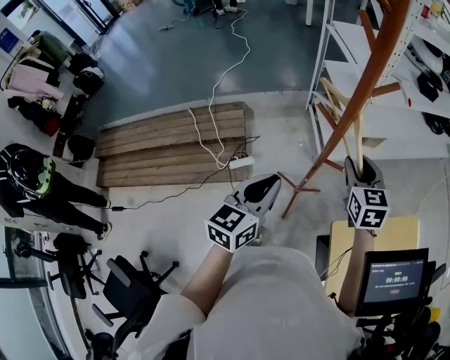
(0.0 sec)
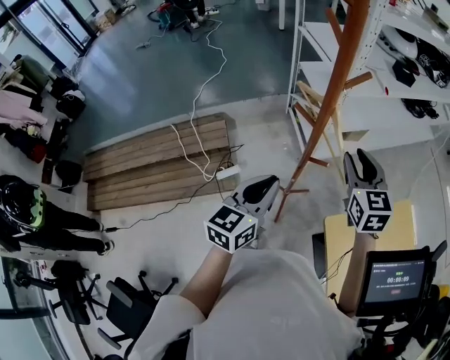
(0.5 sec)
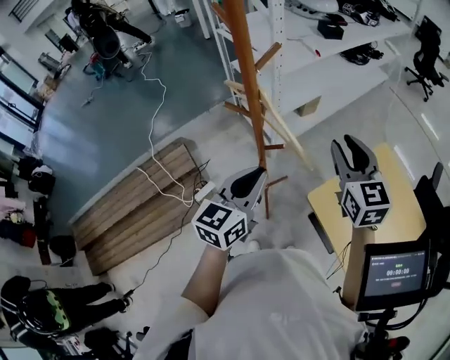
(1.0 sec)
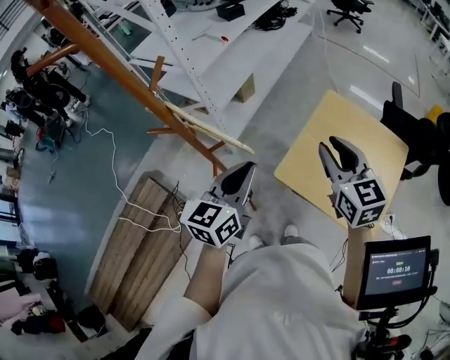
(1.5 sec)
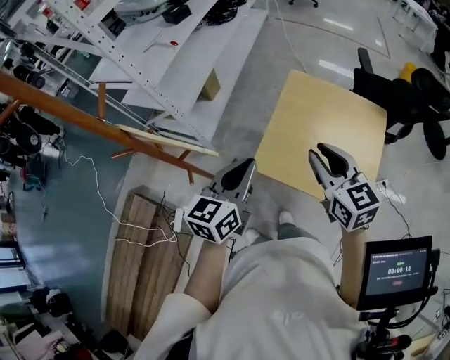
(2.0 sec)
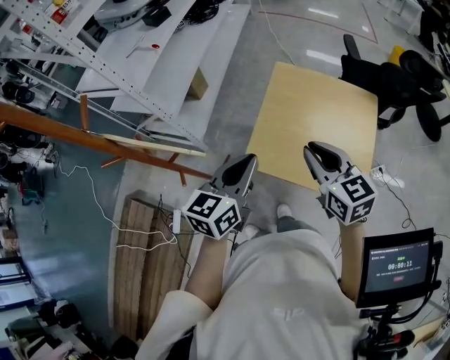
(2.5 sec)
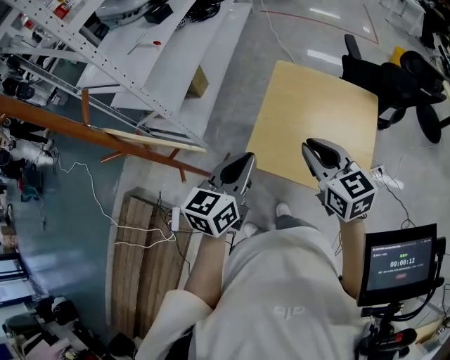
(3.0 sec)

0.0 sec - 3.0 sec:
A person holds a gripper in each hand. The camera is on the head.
0.0 sec - 1.5 sec: The right gripper shifts by approximately 30 cm, and swivels some 40 degrees; the left gripper moves roughly 25 cm, and changes its angle by roughly 40 degrees.
1.5 sec - 3.0 sec: The right gripper moves to the right and downward, about 10 cm, while the left gripper travels to the right by approximately 10 cm.

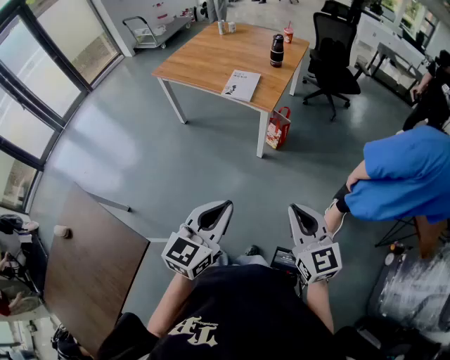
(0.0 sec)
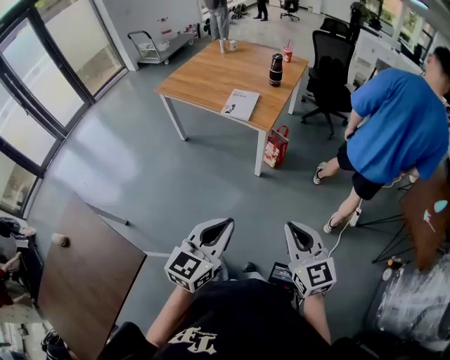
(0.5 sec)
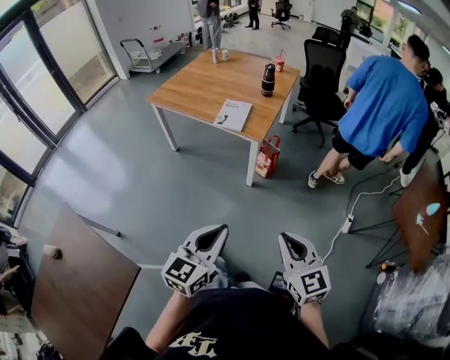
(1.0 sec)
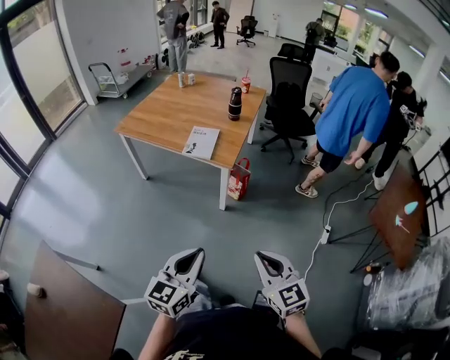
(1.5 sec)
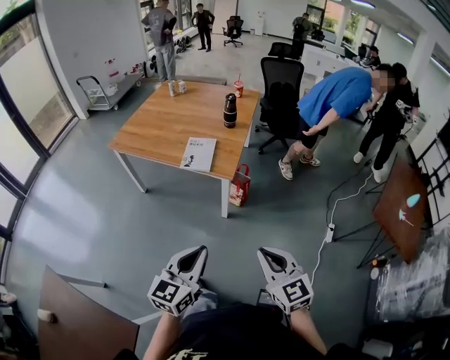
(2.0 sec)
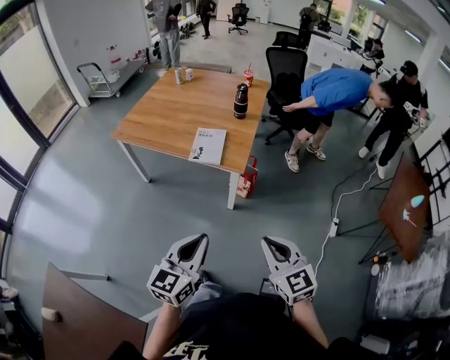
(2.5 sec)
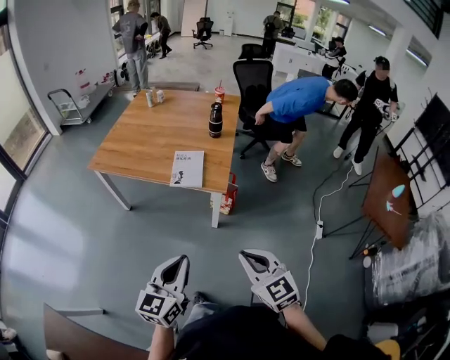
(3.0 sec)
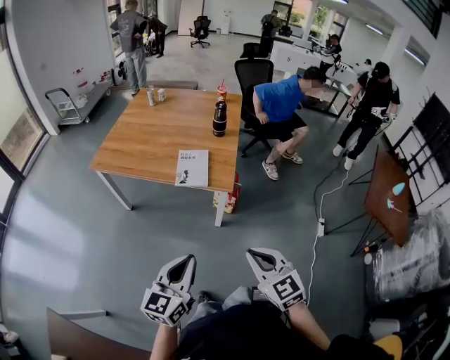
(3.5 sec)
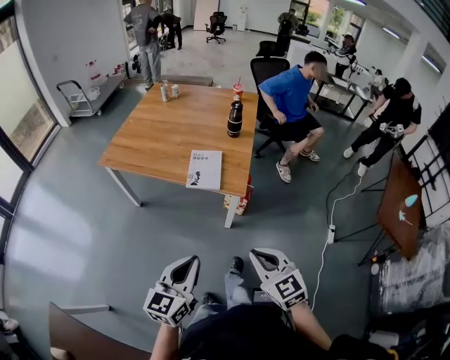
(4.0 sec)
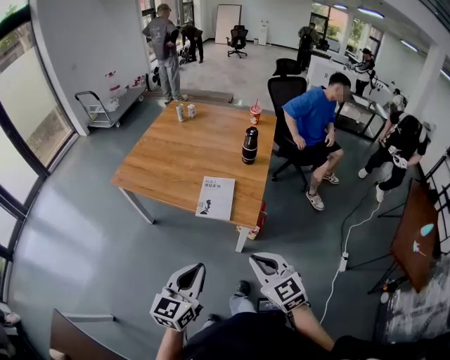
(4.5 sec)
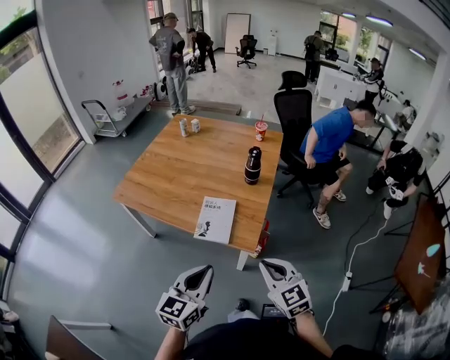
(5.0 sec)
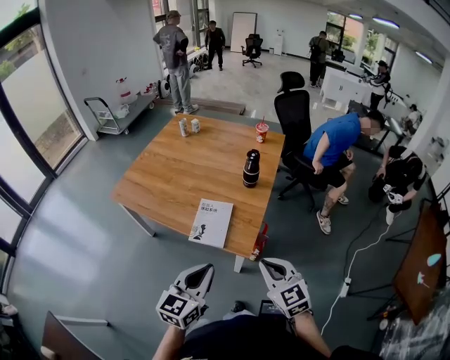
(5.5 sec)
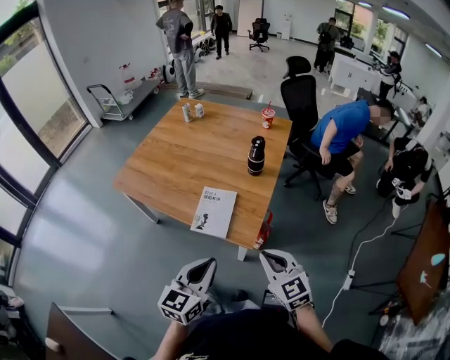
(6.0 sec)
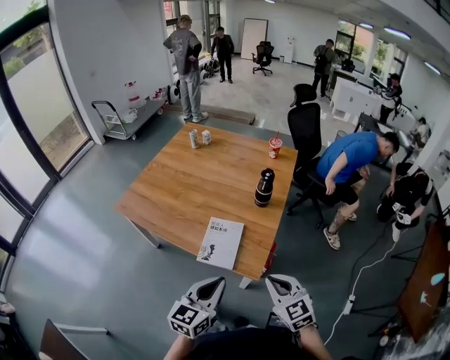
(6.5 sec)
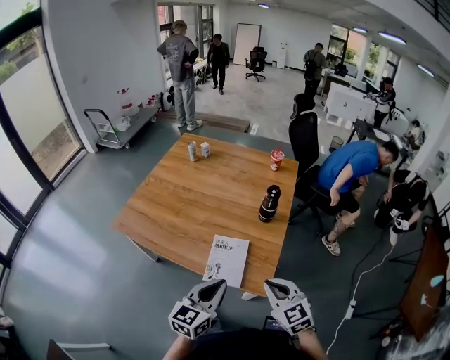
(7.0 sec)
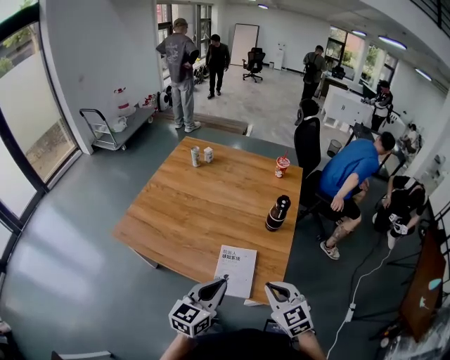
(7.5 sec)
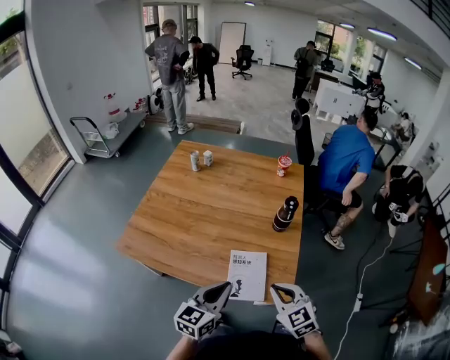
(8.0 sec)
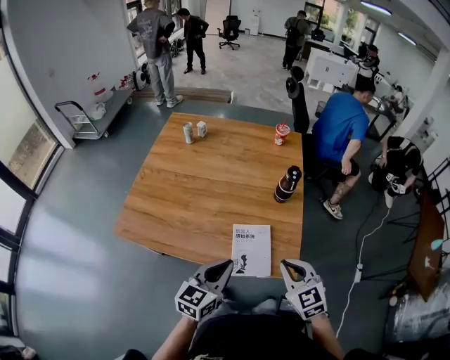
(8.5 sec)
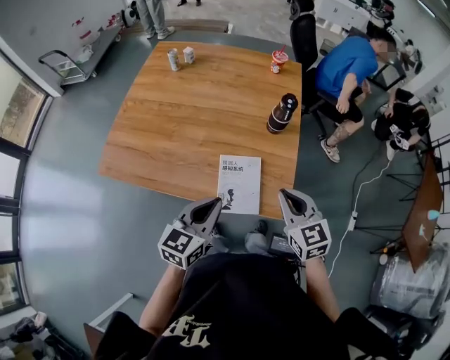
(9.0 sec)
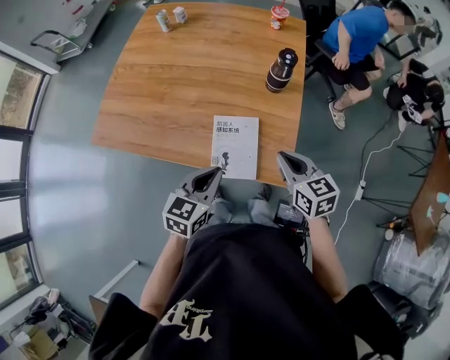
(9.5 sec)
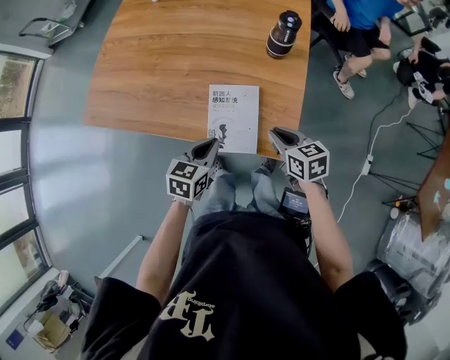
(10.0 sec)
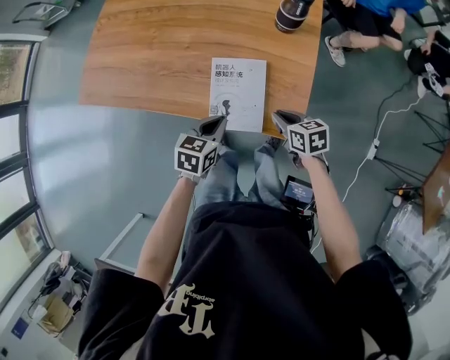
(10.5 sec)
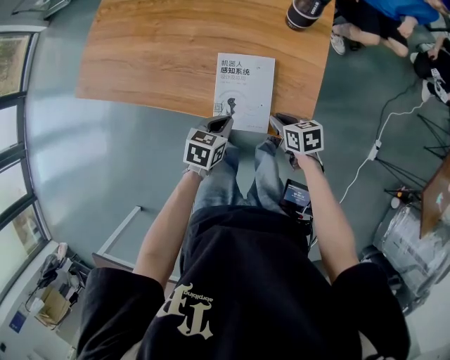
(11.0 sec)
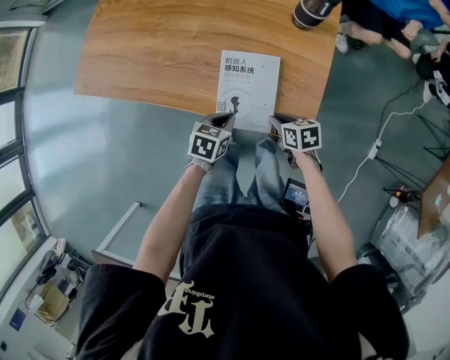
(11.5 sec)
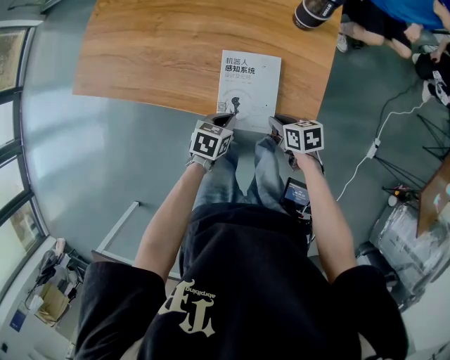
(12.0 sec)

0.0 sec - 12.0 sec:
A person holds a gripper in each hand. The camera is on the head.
0.0 sec - 2.0 sec: The grippers both shift forward by roughly 15 cm.
2.0 sec - 4.0 sec: Both grippers move to the left and forward, about 20 cm.
4.0 sec - 6.0 sec: Both grippers travel together forward and to the right, approximately 30 cm.
6.0 sec - 8.0 sec: The left gripper heads forward and to the left, covering some 30 cm. The right gripper shifts roughly 25 cm to the left and forward.
8.0 sec - 10.0 sec: The left gripper heads downward, covering roughly 20 cm, and turns by roughly 30 degrees, while the right gripper travels downward and to the right by roughly 20 cm, and turns by about 40 degrees.
10.0 sec - 12.0 sec: The two grippers go approximately 15 cm downward. The right gripper turns by some 20 degrees.

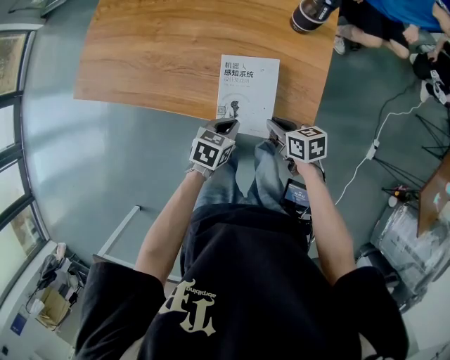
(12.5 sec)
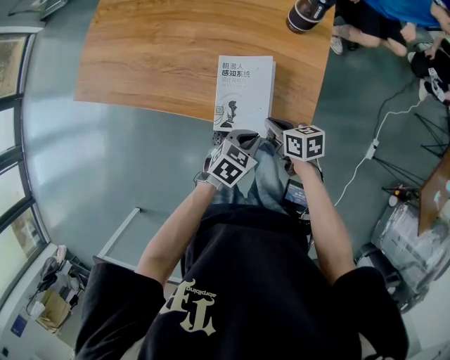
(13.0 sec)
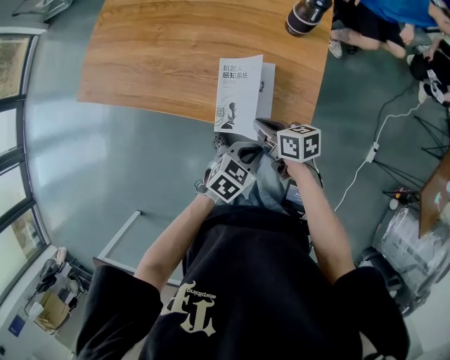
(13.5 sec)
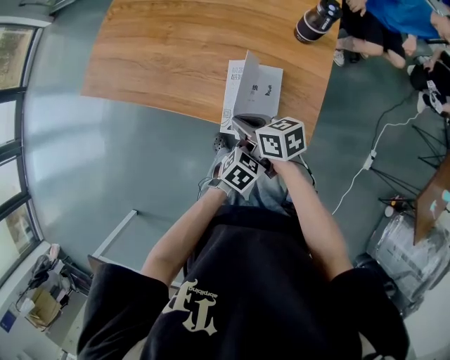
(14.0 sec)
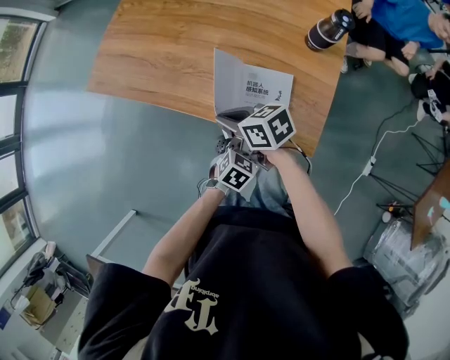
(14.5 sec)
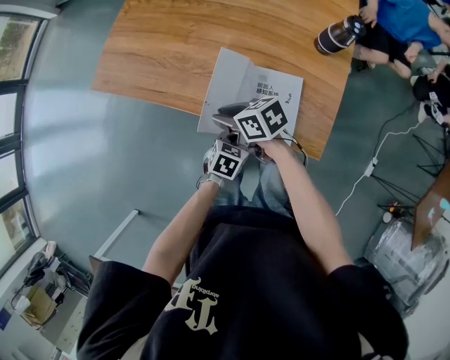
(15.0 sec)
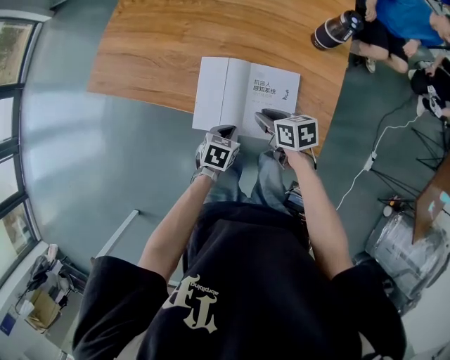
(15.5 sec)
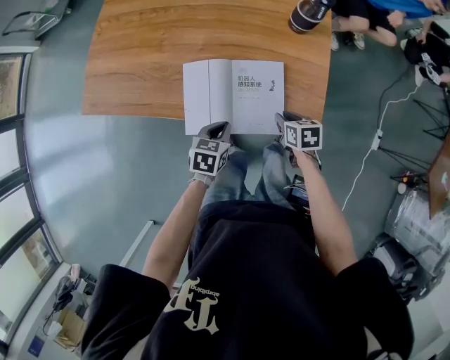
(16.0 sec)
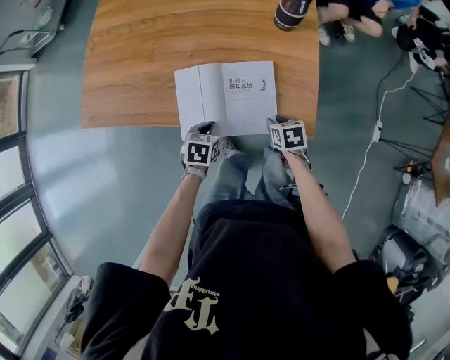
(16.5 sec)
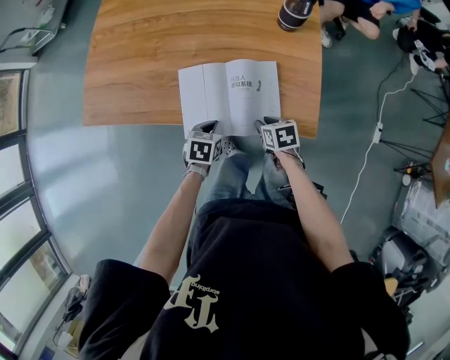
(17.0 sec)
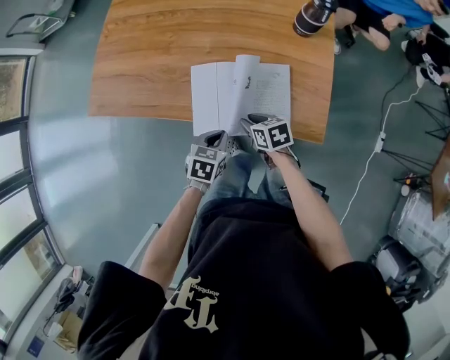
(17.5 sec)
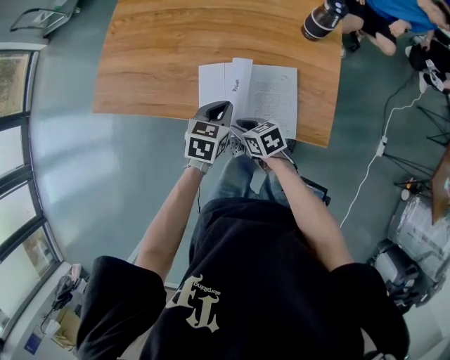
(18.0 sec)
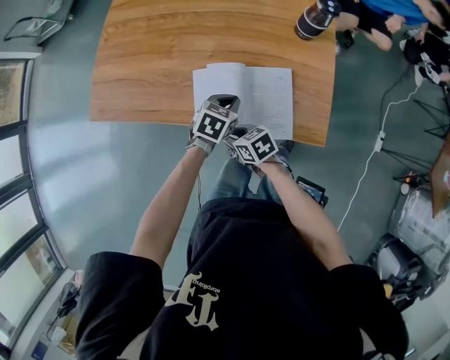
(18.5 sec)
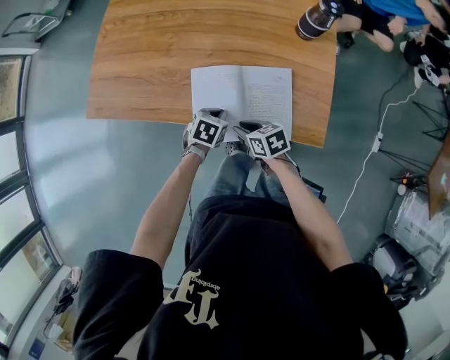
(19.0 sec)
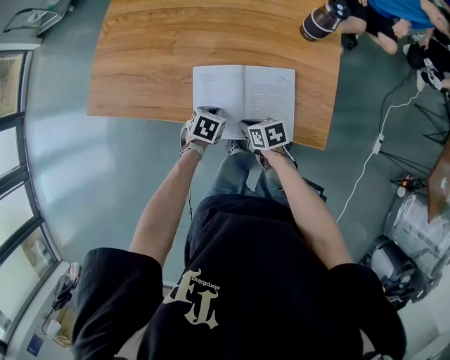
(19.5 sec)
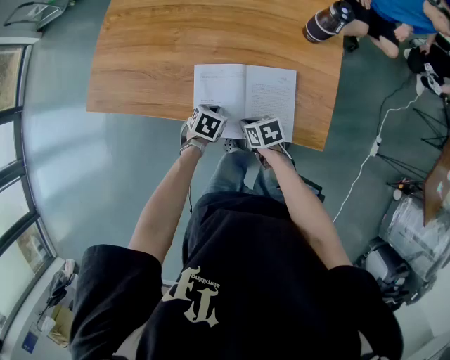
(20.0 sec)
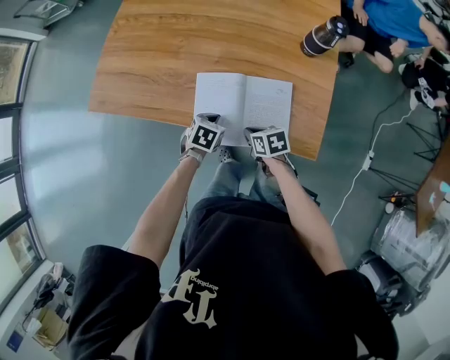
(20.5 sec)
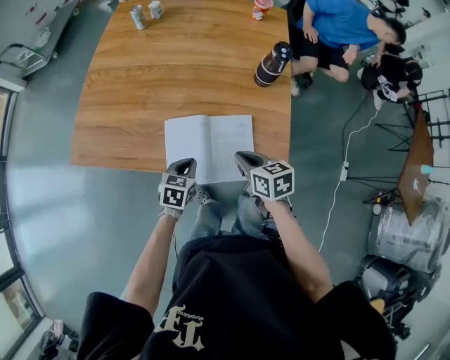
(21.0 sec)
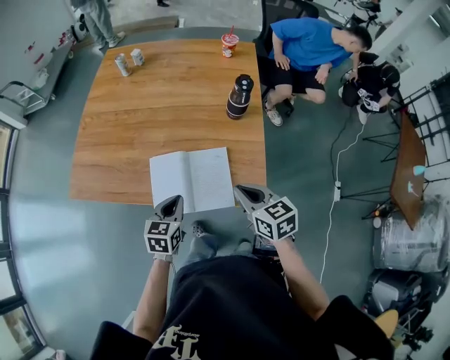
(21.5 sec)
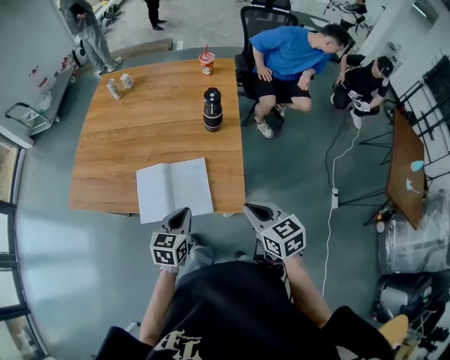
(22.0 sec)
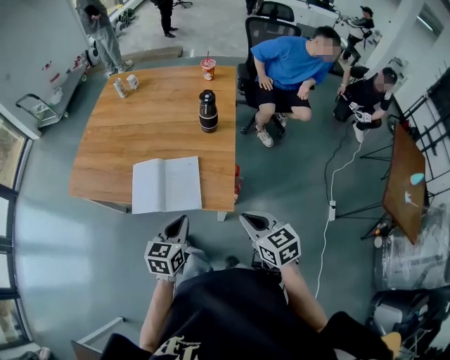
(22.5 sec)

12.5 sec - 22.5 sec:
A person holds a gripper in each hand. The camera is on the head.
12.5 sec - 14.5 sec: The right gripper ends up some 25 cm from where it was, and changes its angle by about 30 degrees.
14.5 sec - 16.5 sec: The right gripper shifts by about 25 cm, changes its angle by roughly 50 degrees, and opens up. Meanwhile the left gripper shifts by approximately 15 cm.
16.5 sec - 18.5 sec: The left gripper travels forward and upward by roughly 10 cm. The right gripper heads to the left, covering about 20 cm, and rotates about 30 degrees.
18.5 sec - 20.5 sec: The right gripper is displaced to the right by some 10 cm, and closes its fingers. Meanwhile the left gripper shifts approximately 10 cm downward and to the left.
20.5 sec - 22.5 sec: The left gripper goes about 35 cm upward, to the right and backward, and tilts its fingers about 30 degrees upward, while the right gripper heads to the right, upward and backward, covering some 40 cm, and swivels approximately 40 degrees.

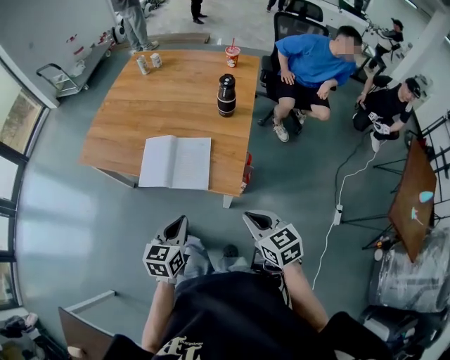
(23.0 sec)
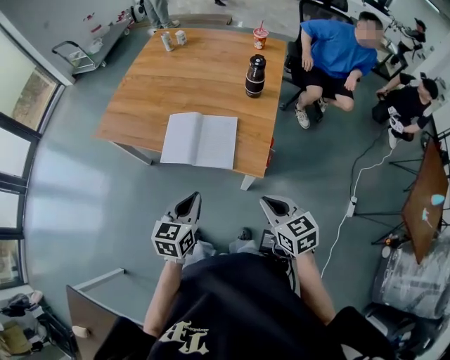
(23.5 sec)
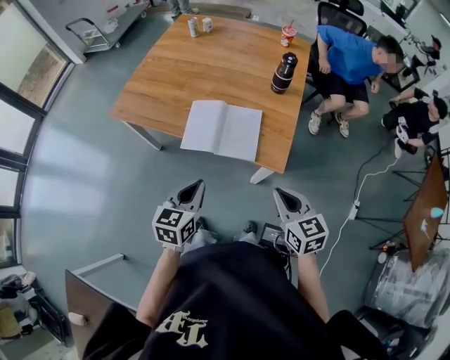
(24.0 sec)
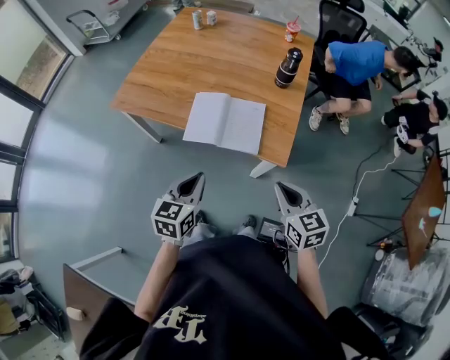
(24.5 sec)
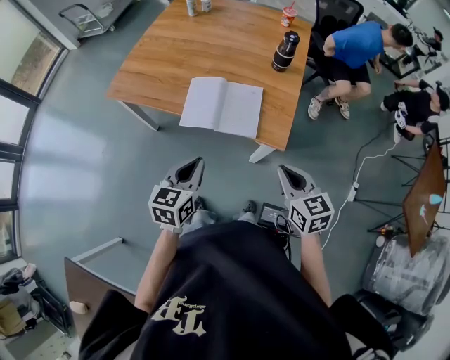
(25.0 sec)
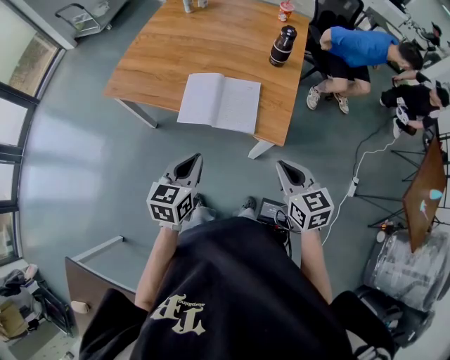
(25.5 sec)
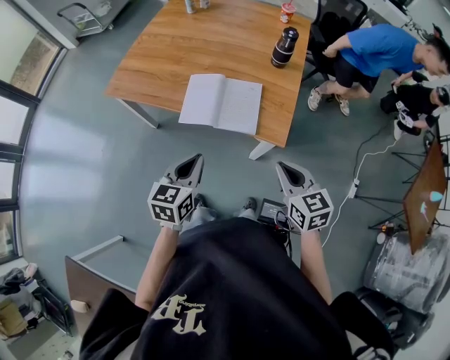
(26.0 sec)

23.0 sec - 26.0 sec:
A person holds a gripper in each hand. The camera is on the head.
23.0 sec - 24.5 sec: Both grippers move to the left, about 10 cm.
24.5 sec - 26.0 sec: Both grippers stay about where they are.
